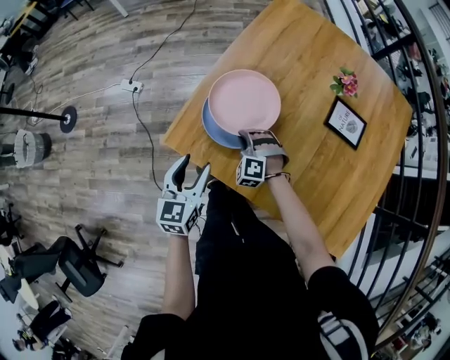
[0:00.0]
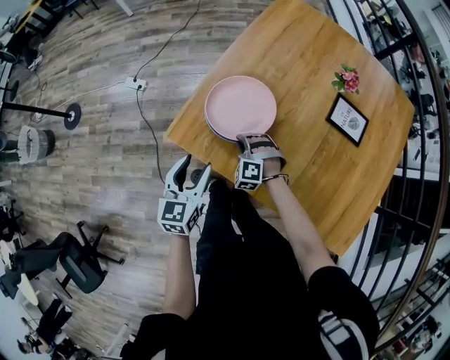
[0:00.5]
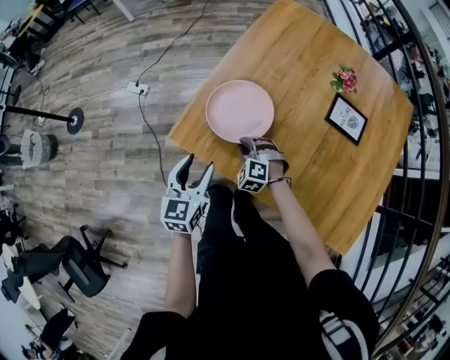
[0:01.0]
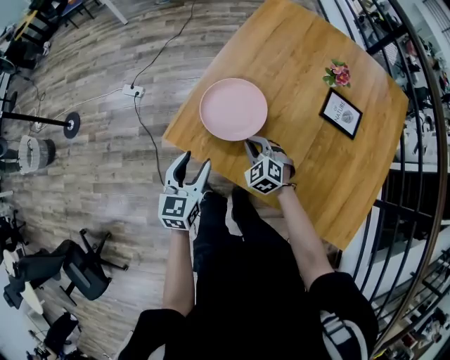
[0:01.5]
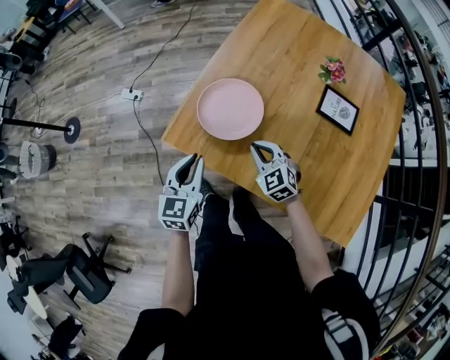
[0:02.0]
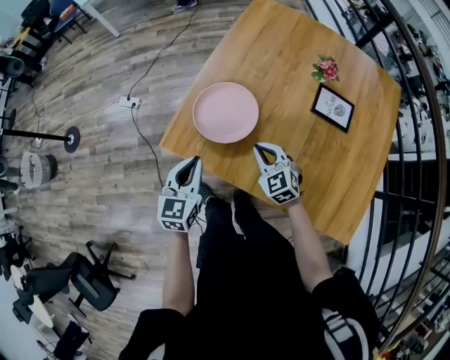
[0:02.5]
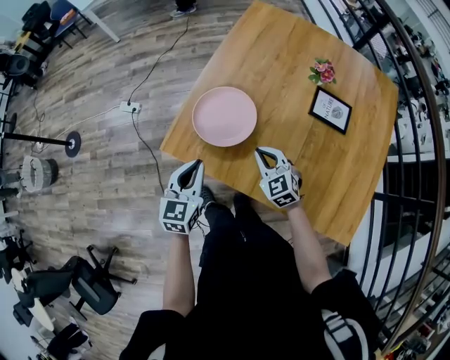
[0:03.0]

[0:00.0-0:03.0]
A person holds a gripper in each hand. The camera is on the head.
0:00.0 to 0:01.5: The right gripper travels backward by about 5 cm, and swivels roughly 30 degrees.
0:01.5 to 0:03.0: The right gripper goes roughly 5 cm upward, and rotates some 20 degrees. The left gripper closes.

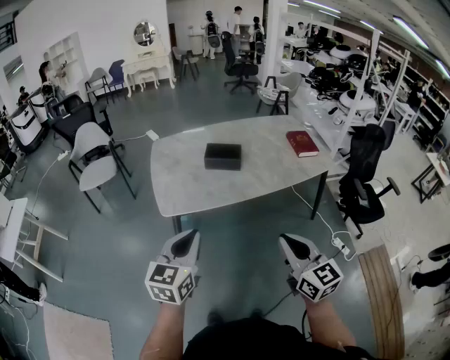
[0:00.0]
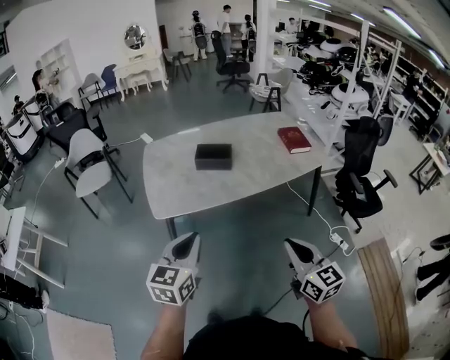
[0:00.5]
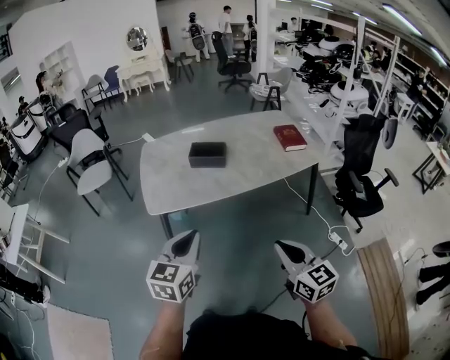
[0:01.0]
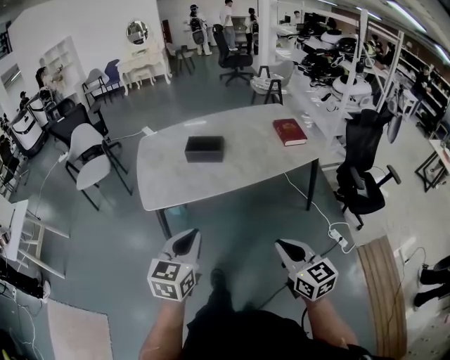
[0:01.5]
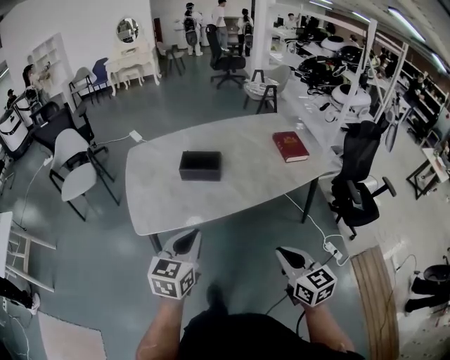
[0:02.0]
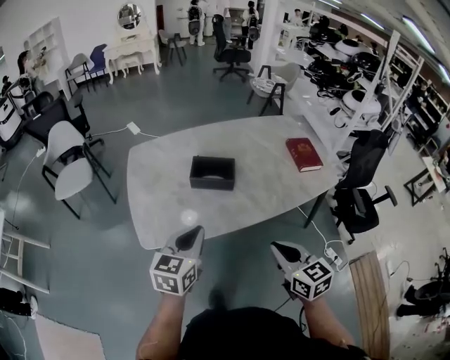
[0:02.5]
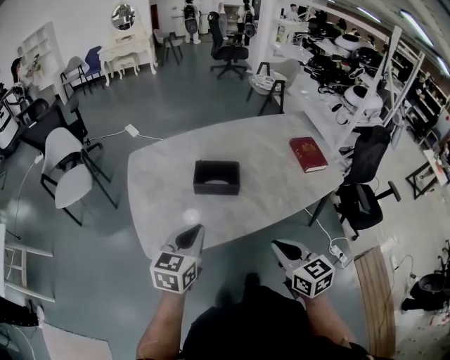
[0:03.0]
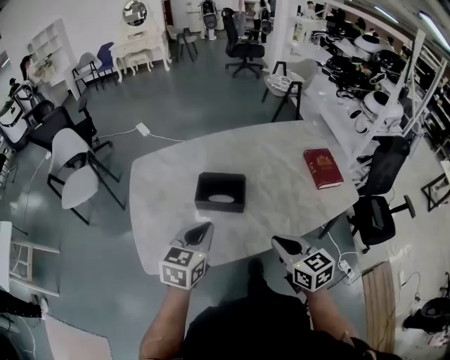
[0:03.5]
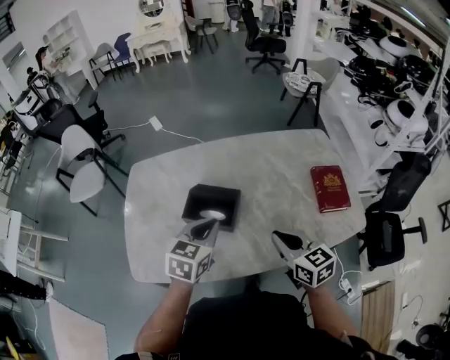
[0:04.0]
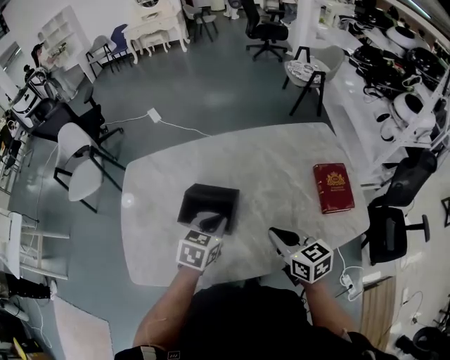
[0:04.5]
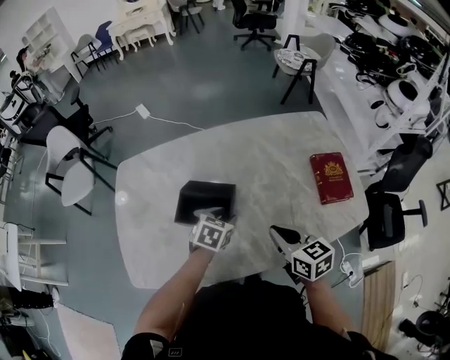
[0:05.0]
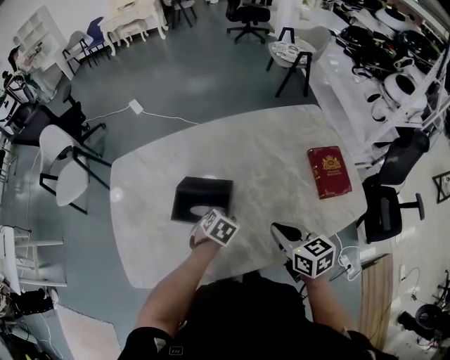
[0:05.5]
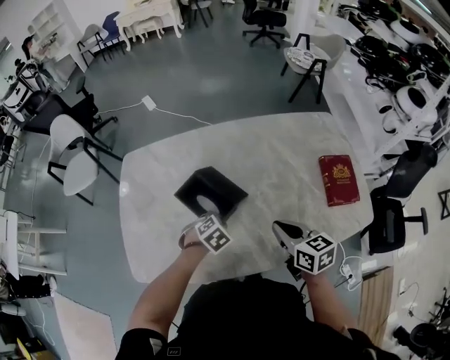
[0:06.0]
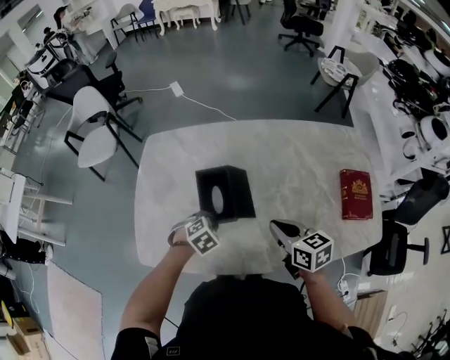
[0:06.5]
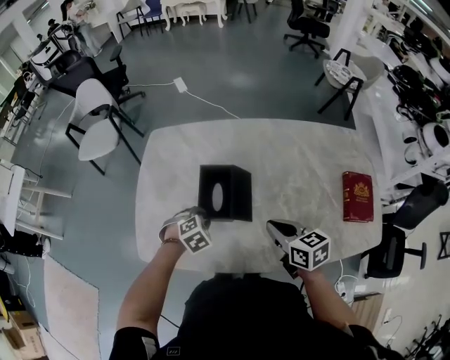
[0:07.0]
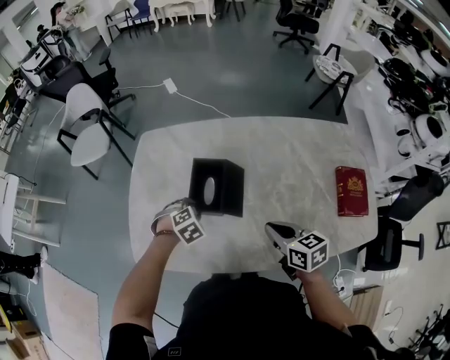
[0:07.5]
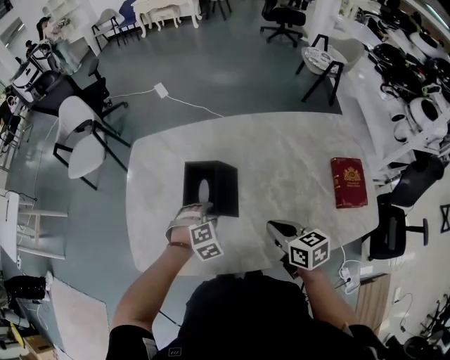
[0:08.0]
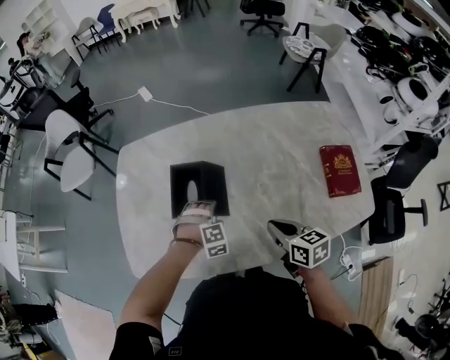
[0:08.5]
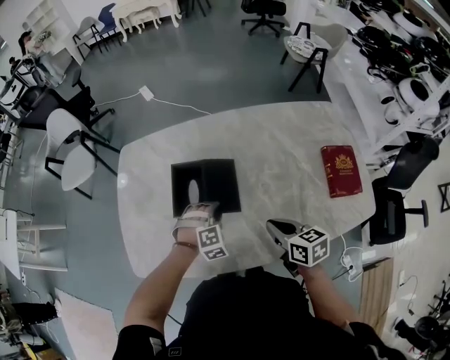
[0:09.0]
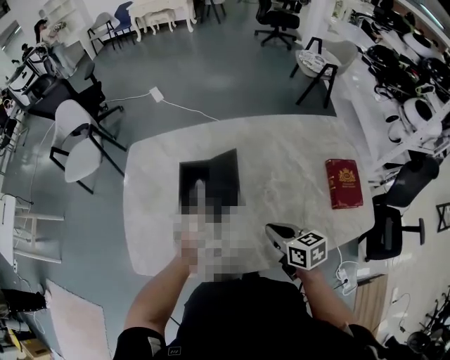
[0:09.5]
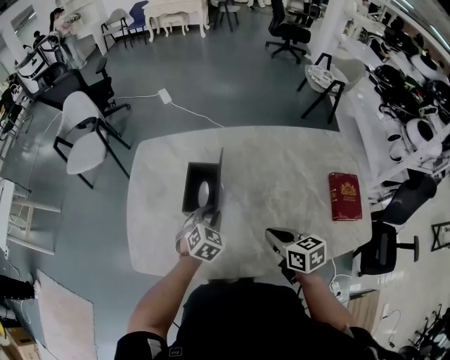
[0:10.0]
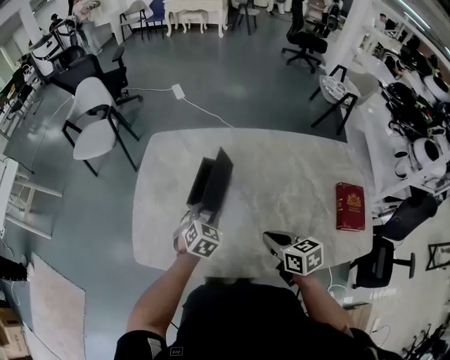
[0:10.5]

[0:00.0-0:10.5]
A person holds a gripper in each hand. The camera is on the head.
0:00.0 to 0:02.0: The left gripper travels forward and to the right by about 20 cm; the right gripper moves forward, to the right and downward, some 15 cm.
0:02.0 to 0:04.0: The pair of grippers is taken forward, about 50 cm.
0:04.0 to 0:06.5: The right gripper goes roughly 15 cm to the left, forward and downward. The left gripper goes some 25 cm downward and to the left, tilts its fingers about 40 degrees downward, and opens, then closes again.
0:06.5 to 0:08.5: Both grippers move to the right, some 5 cm. The left gripper rotates around the line of its fingers by about 40 degrees, clockwise from behind, and opens.
0:08.5 to 0:10.5: The right gripper shifts roughly 10 cm to the left. The left gripper is displaced to the left and upward by roughly 15 cm, and rolls counterclockwise, seen from behind, by approximately 60 degrees.

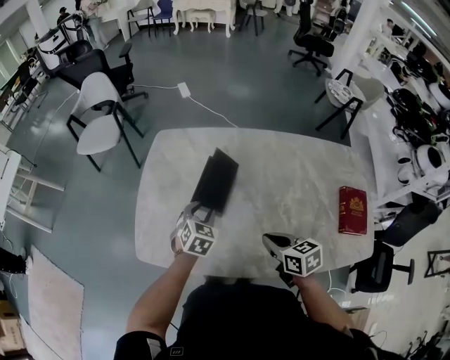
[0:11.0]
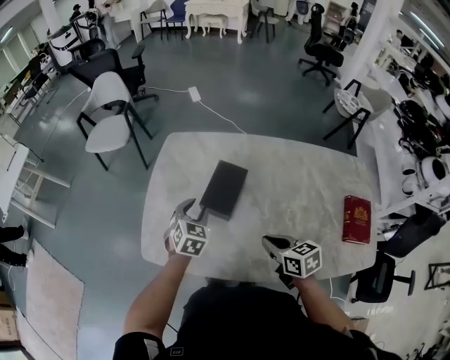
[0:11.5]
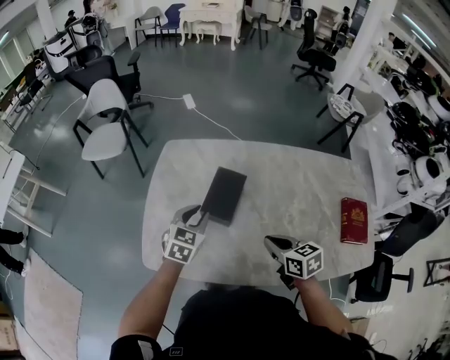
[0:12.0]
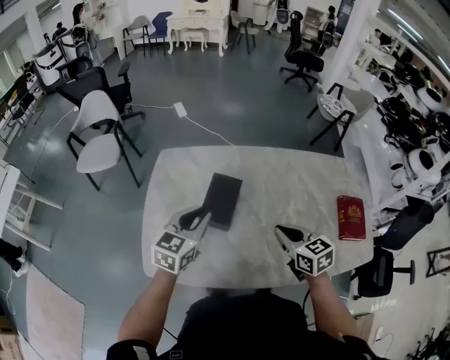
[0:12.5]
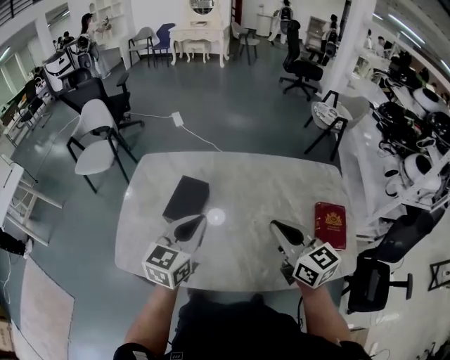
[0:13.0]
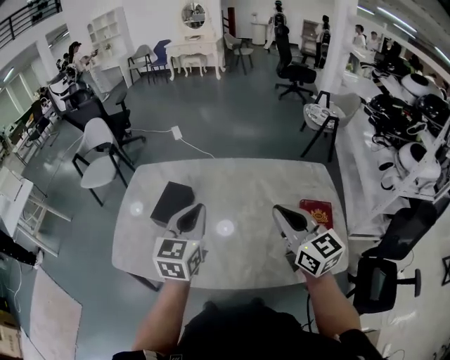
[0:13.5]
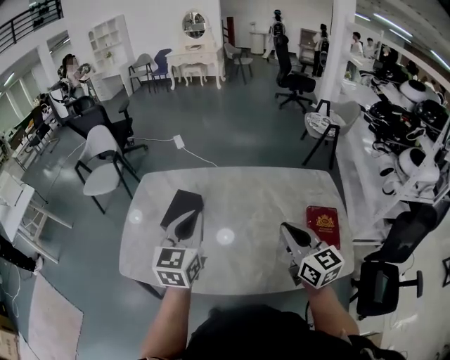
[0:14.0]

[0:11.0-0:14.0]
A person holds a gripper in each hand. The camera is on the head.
0:11.0 to 0:12.5: The right gripper moves upward, roughly 5 cm. Meanwhile the left gripper travels upward by roughly 15 cm, turns by roughly 30 degrees, and closes its fingers.
0:12.5 to 0:14.0: The right gripper shifts about 30 cm to the right and upward, and swivels roughly 30 degrees. The left gripper goes roughly 30 cm to the right, upward and backward, and turns by approximately 20 degrees.

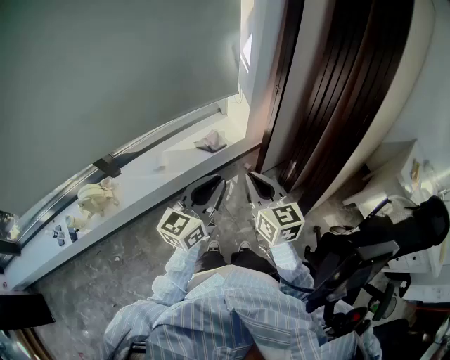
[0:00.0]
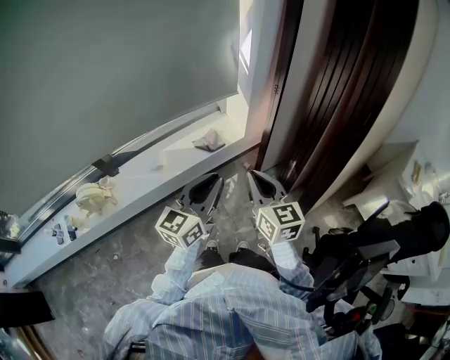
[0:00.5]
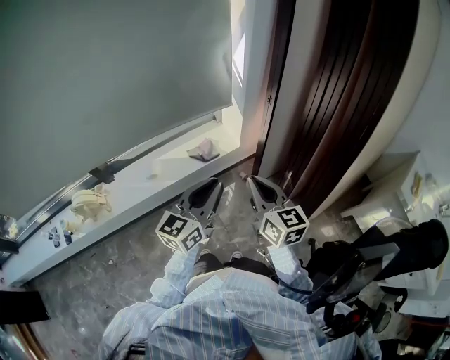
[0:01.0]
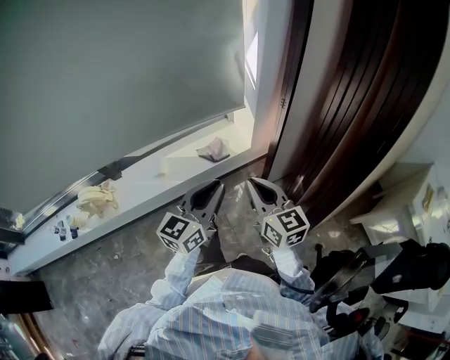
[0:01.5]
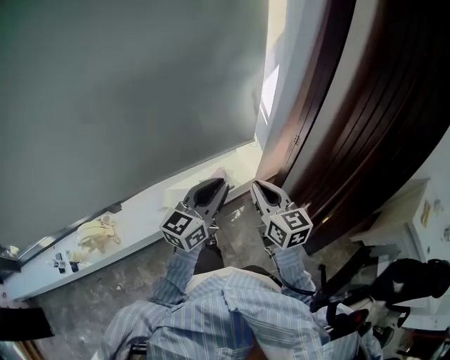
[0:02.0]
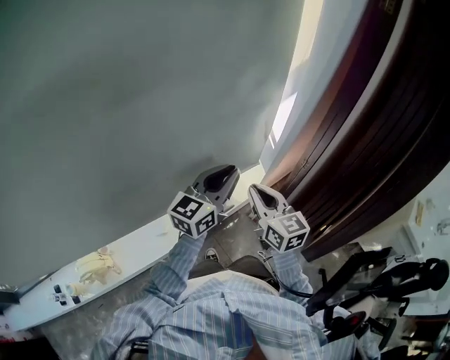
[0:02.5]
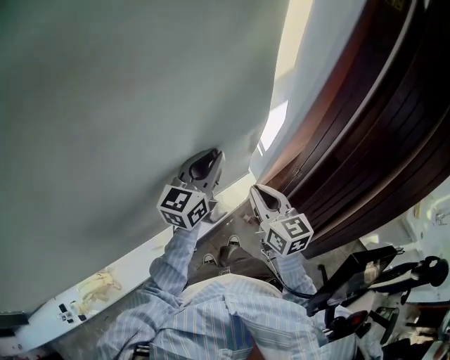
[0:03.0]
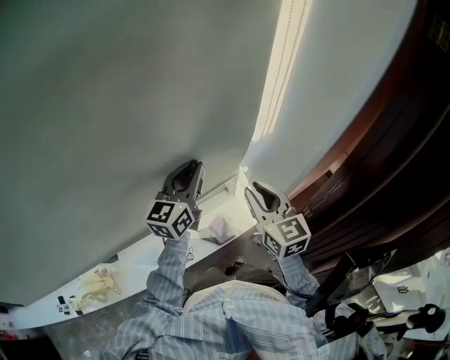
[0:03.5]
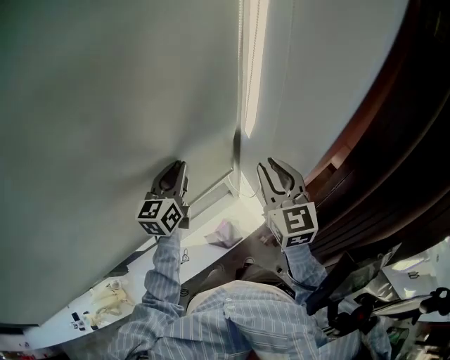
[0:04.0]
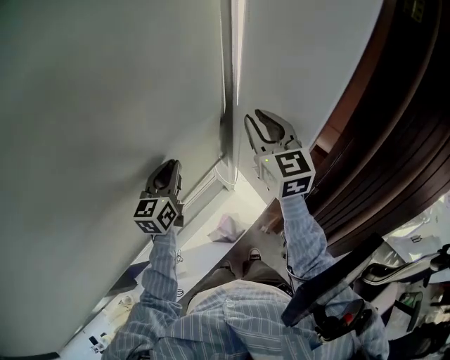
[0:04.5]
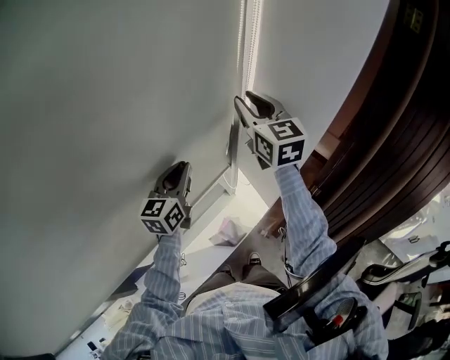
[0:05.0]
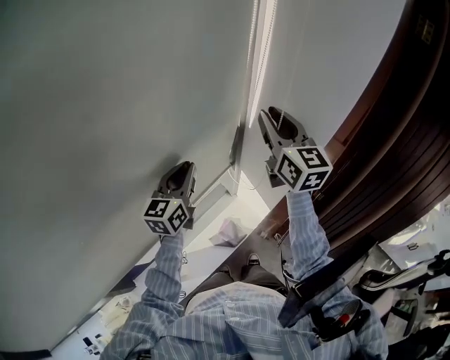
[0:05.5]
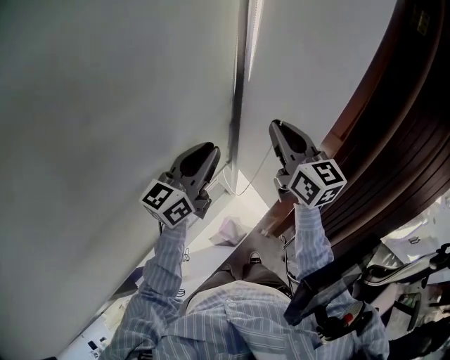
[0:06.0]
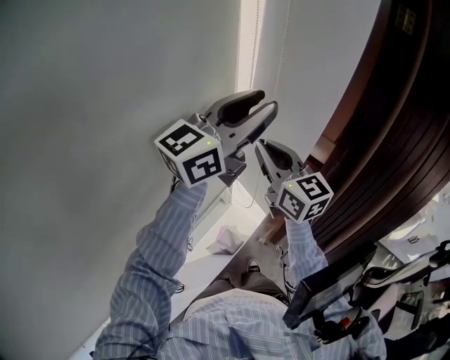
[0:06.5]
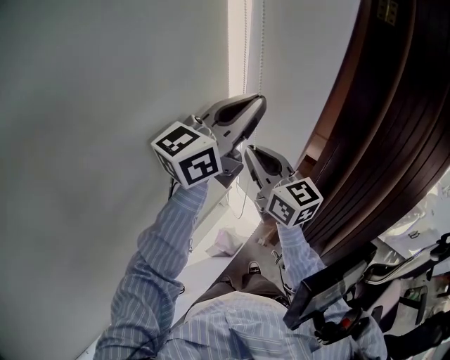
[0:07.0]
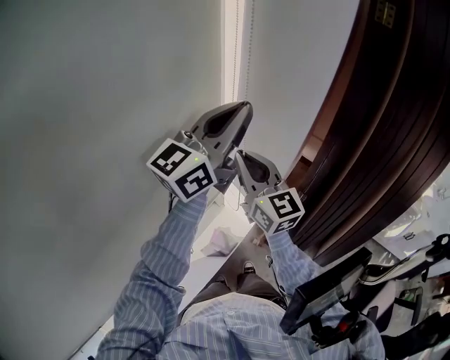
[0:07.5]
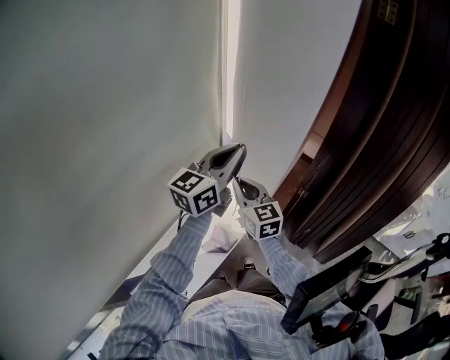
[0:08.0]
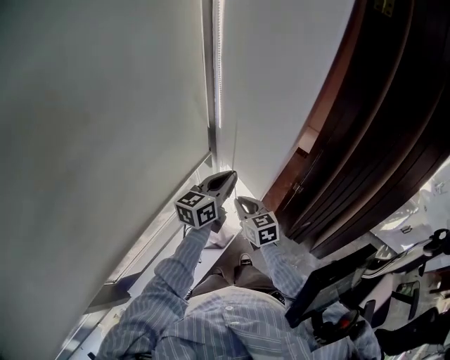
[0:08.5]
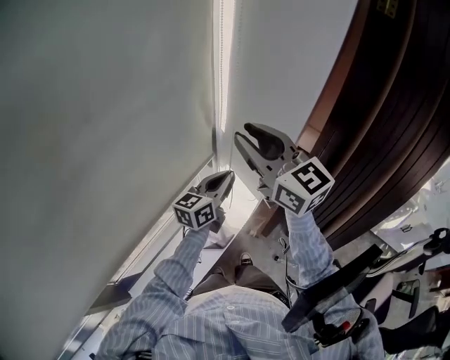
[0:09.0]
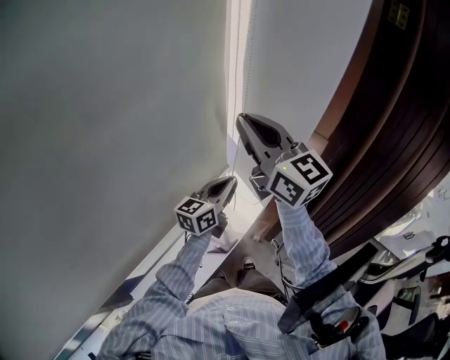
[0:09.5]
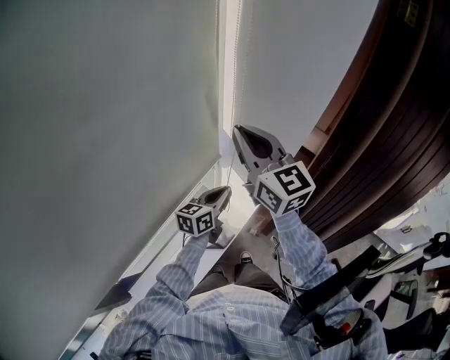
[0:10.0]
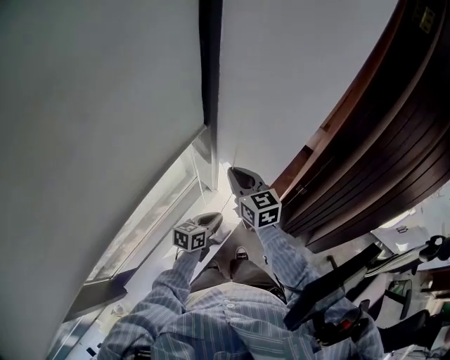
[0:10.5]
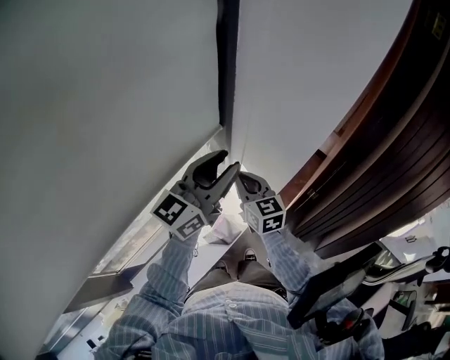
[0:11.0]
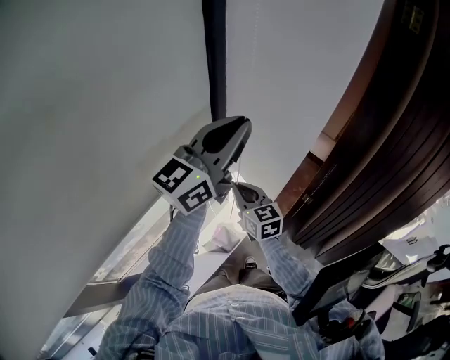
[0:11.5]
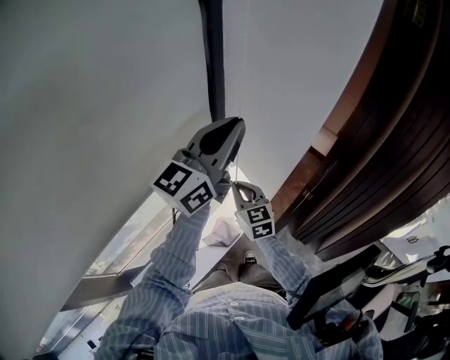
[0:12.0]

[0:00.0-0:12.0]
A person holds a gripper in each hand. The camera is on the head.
0:00.0 to 0:02.0: Both grippers move forward, approximately 25 cm.
0:02.0 to 0:04.0: Both grippers move forward, approximately 40 cm. The right gripper rotates roughly 20 degrees.
0:04.0 to 0:06.0: The left gripper travels upward and to the right by some 10 cm, and turns by about 40 degrees. Meanwhile the right gripper travels upward by some 5 cm, and goes forward and returns, about 10 cm each way.
0:06.0 to 0:08.0: The left gripper moves to the right, approximately 10 cm, moves some 15 cm upward and comes back, and opens, then closes again. The right gripper shifts about 20 cm downward.
0:08.0 to 0:10.0: The right gripper swings up and down, some 35 cm each way, with 2 reversals, and opens, then closes once more. Meanwhile the left gripper is displaced downward by about 20 cm, and turns by approximately 20 degrees.
0:10.0 to 0:12.0: The right gripper goes roughly 25 cm downward, and swivels some 20 degrees; the left gripper heads upward, covering some 30 cm, changes its angle by some 40 degrees, and opens, then closes once more.
